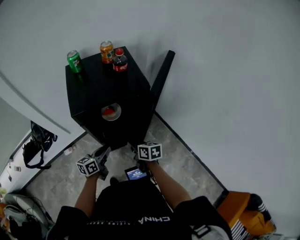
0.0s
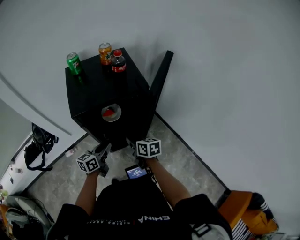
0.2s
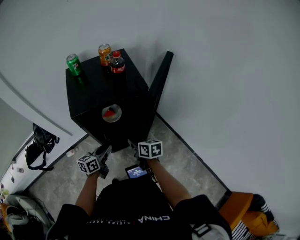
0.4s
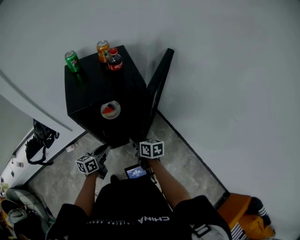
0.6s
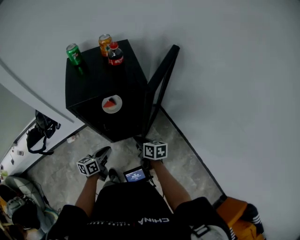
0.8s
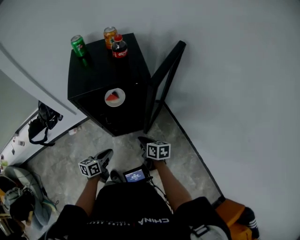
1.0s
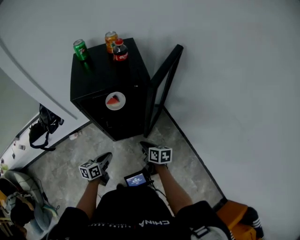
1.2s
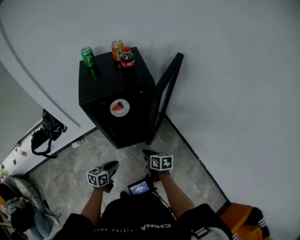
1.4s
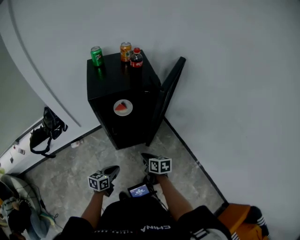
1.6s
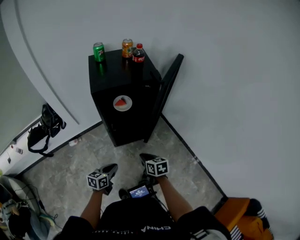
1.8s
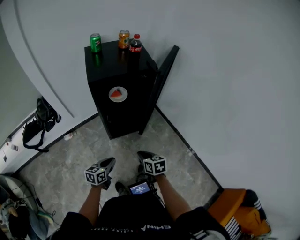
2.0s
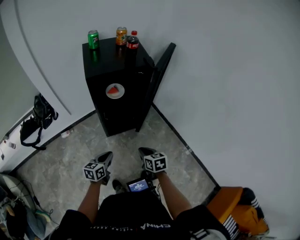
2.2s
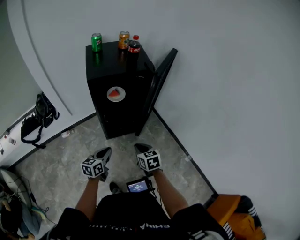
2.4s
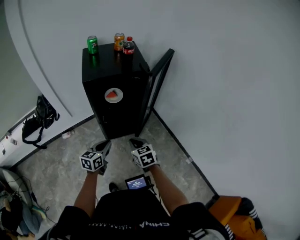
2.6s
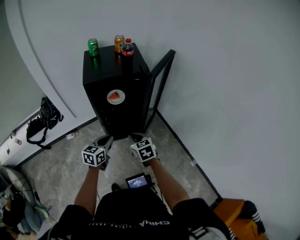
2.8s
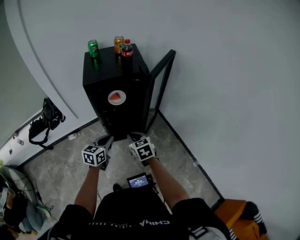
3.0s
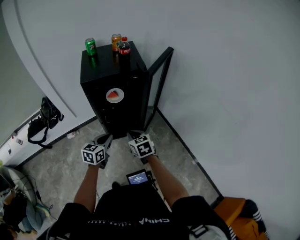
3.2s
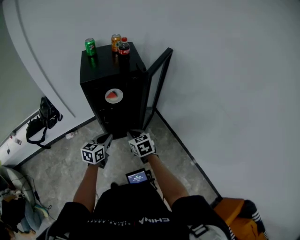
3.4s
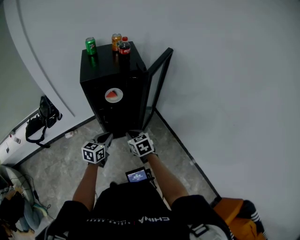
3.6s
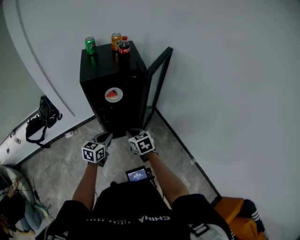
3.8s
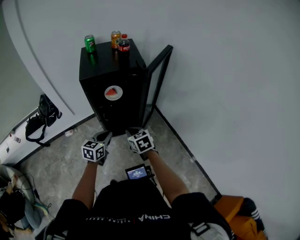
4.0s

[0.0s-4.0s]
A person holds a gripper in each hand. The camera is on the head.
0.0s to 1.4s: The left gripper changes place by roughly 15 cm.
1.4s to 2.6s: The left gripper travels upward by roughly 10 cm.

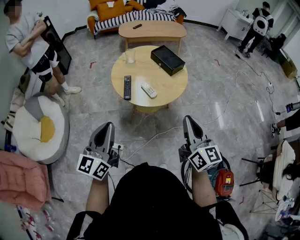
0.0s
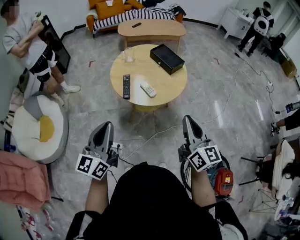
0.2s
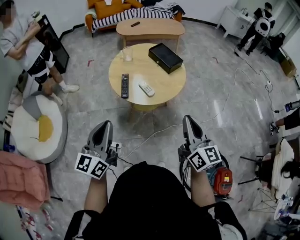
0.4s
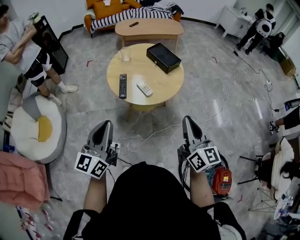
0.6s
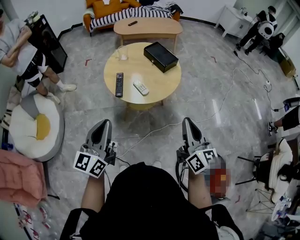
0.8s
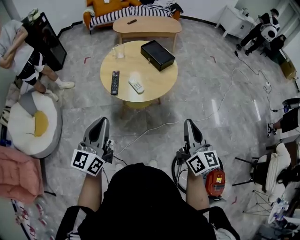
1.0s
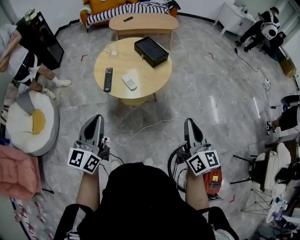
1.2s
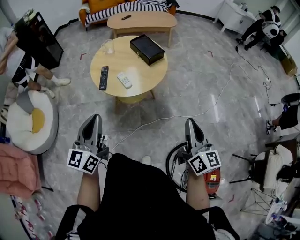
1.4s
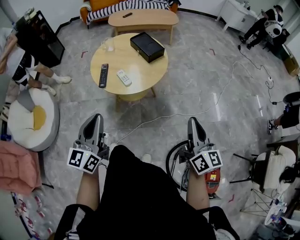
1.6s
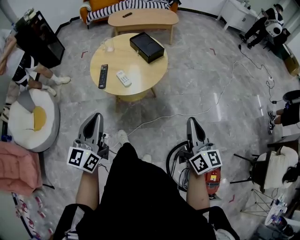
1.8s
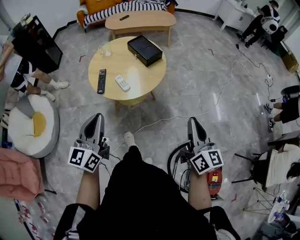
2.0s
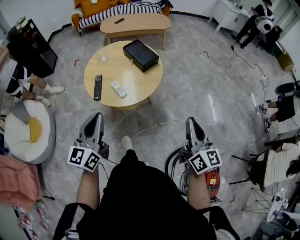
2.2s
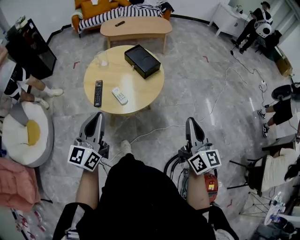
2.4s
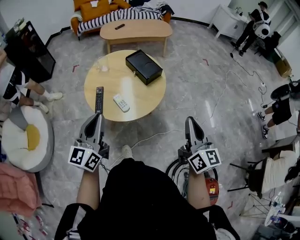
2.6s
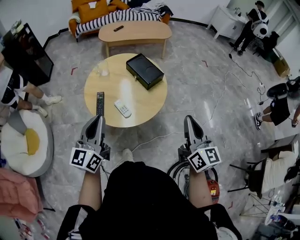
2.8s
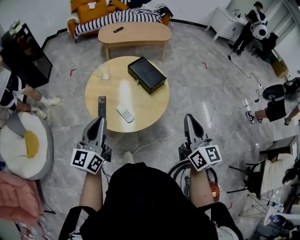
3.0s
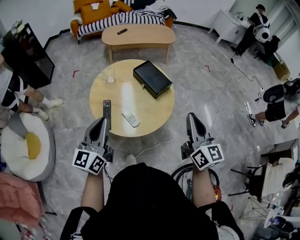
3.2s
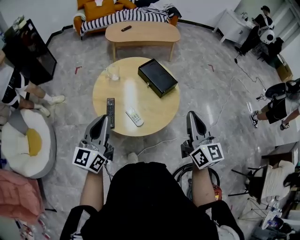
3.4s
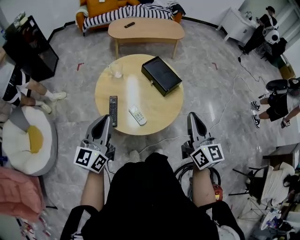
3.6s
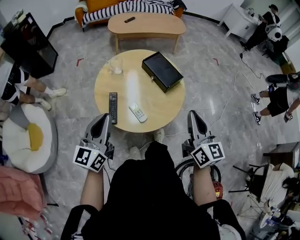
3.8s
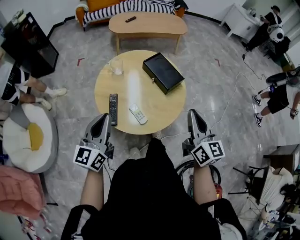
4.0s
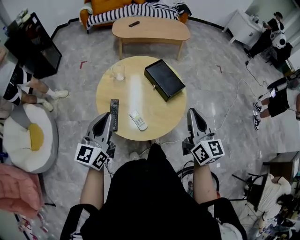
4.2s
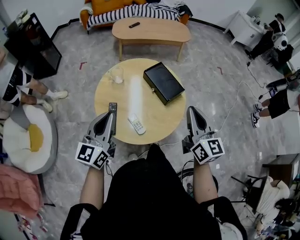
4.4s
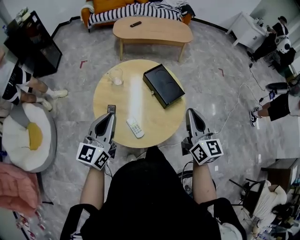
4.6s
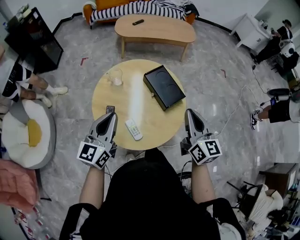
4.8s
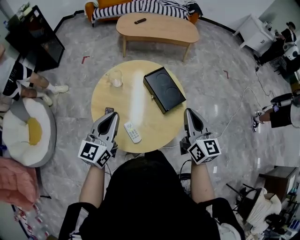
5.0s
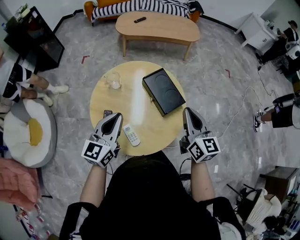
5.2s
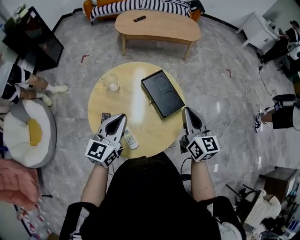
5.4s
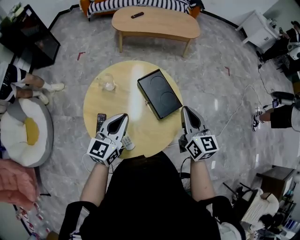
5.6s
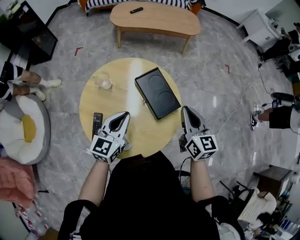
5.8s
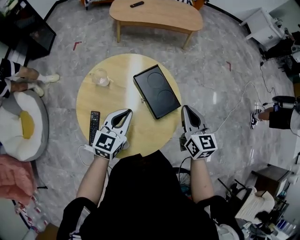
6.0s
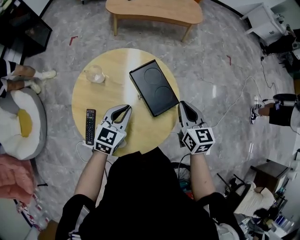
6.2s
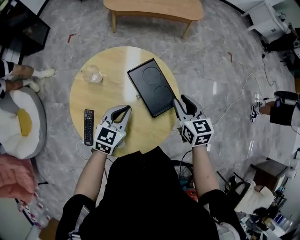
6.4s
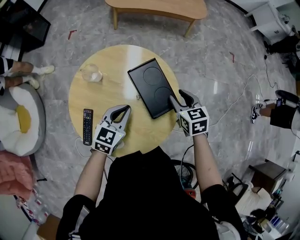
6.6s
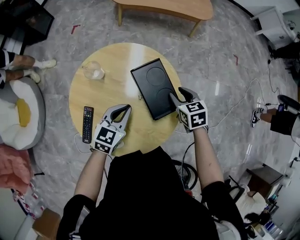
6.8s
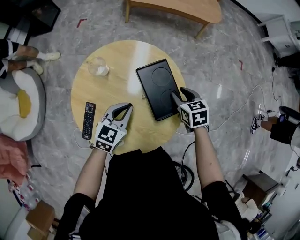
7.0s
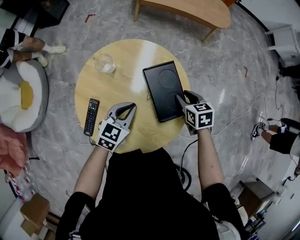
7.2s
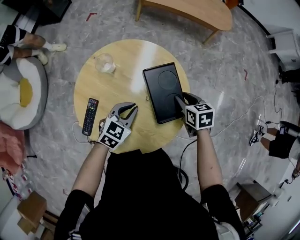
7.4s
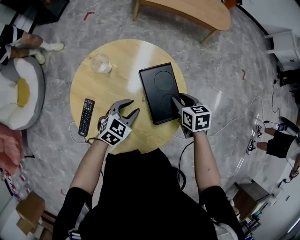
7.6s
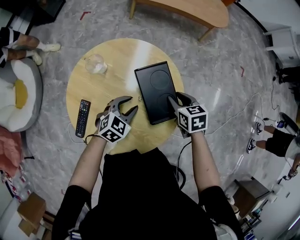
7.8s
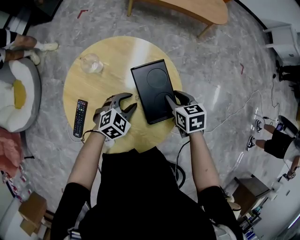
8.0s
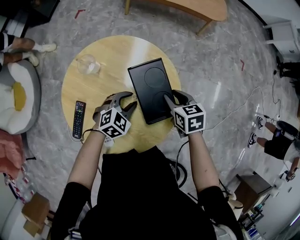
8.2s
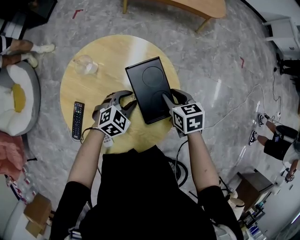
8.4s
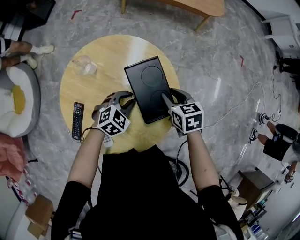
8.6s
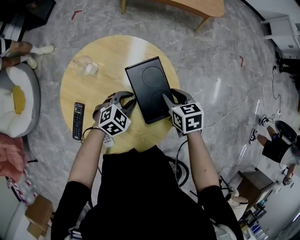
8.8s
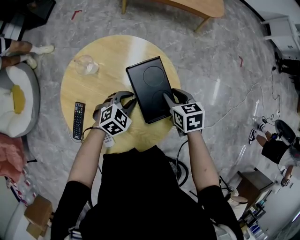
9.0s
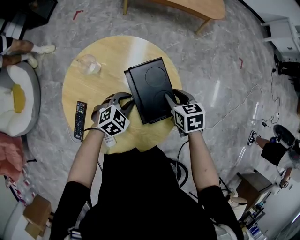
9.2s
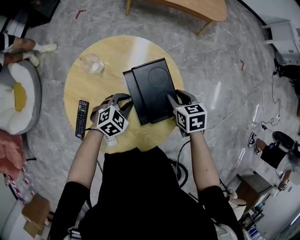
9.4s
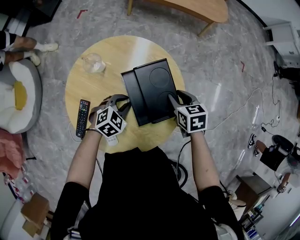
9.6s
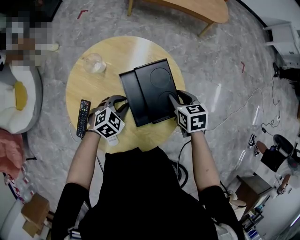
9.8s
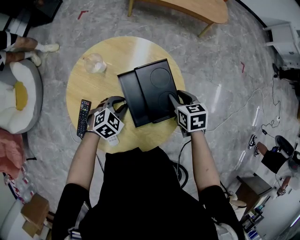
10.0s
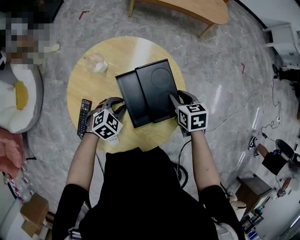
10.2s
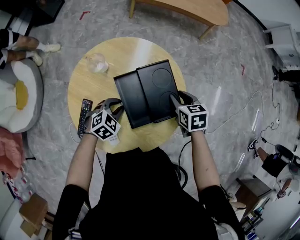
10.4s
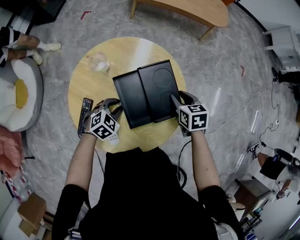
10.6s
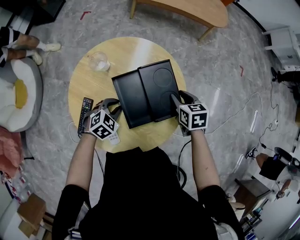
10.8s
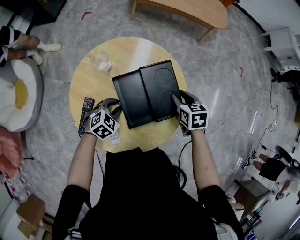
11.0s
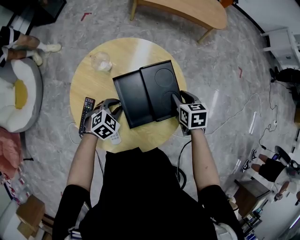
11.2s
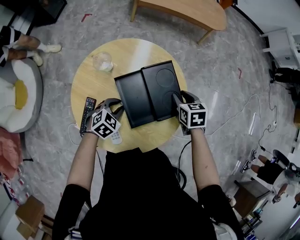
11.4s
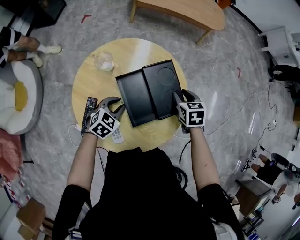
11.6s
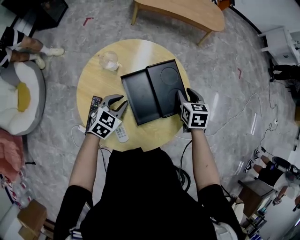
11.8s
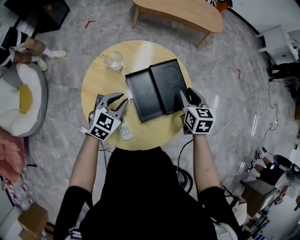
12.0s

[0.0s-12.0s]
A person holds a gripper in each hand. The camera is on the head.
0.0s to 1.6s: The grippers both shift to the right by approximately 15 cm.
1.6s to 3.0s: The left gripper shifts about 20 cm forward. Meanwhile the right gripper goes approximately 25 cm forward and to the left.
3.0s to 4.4s: The left gripper travels forward by about 10 cm; the right gripper shifts about 15 cm forward and to the left.
4.4s to 6.0s: The right gripper travels forward and downward by roughly 20 cm; the left gripper goes approximately 25 cm forward, to the right and downward, and turns by approximately 20 degrees.
6.0s to 7.6s: The left gripper moves downward, roughly 15 cm, swivels approximately 20 degrees, and opens up. Meanwhile the right gripper shifts about 20 cm downward and forward, angles its fingers downward, by about 30 degrees, and opens its fingers.
7.6s to 9.0s: The left gripper ends up approximately 5 cm from where it was.
9.0s to 10.4s: The left gripper moves to the left and backward, about 10 cm.
10.4s to 12.0s: Both grippers move upward, about 10 cm. The left gripper turns by roughly 20 degrees, while the right gripper changes its angle by roughly 20 degrees.

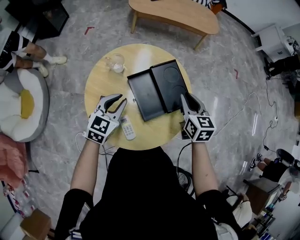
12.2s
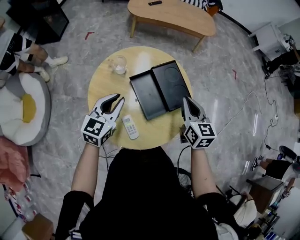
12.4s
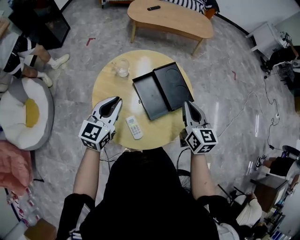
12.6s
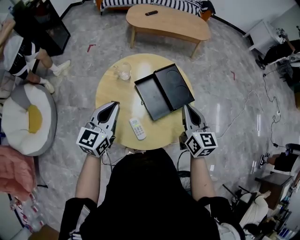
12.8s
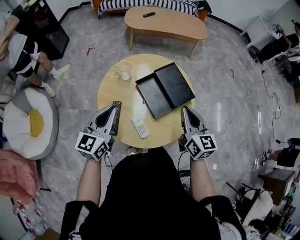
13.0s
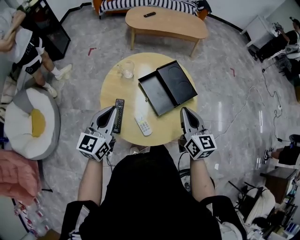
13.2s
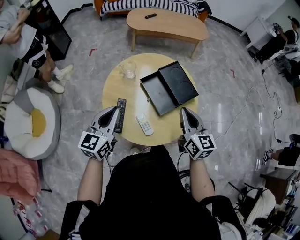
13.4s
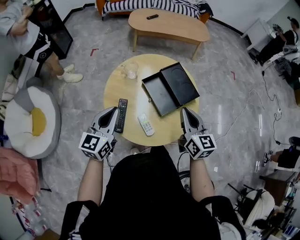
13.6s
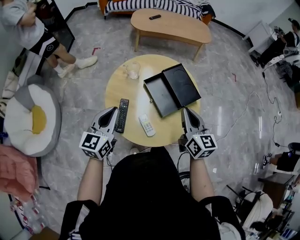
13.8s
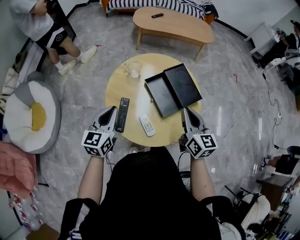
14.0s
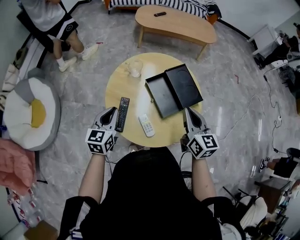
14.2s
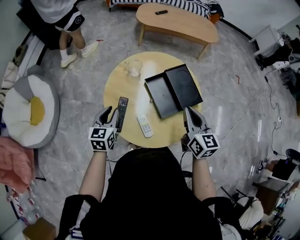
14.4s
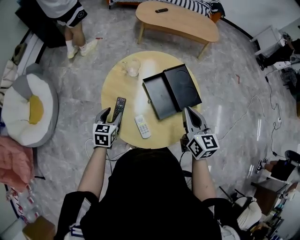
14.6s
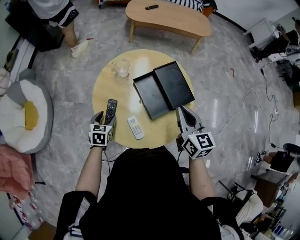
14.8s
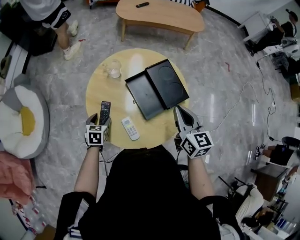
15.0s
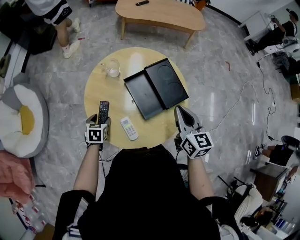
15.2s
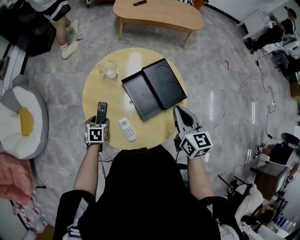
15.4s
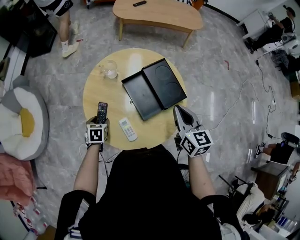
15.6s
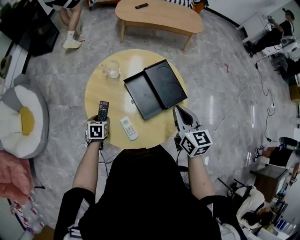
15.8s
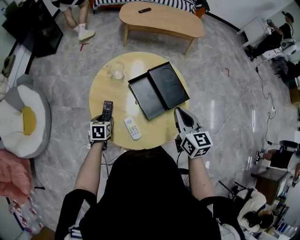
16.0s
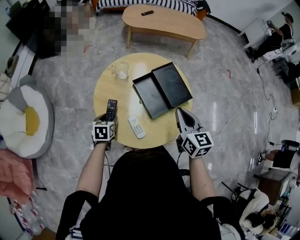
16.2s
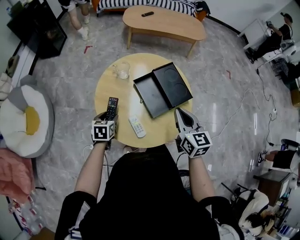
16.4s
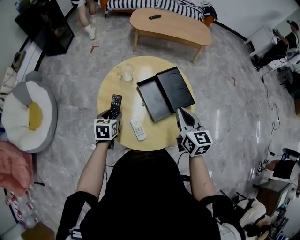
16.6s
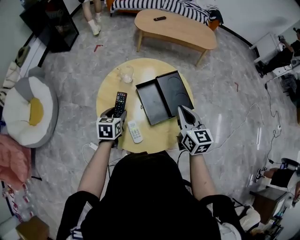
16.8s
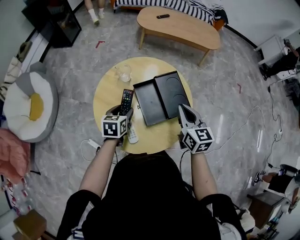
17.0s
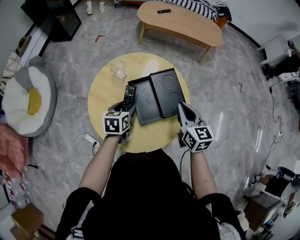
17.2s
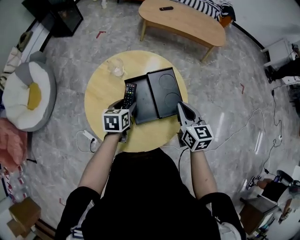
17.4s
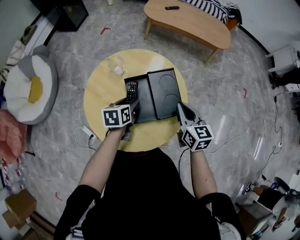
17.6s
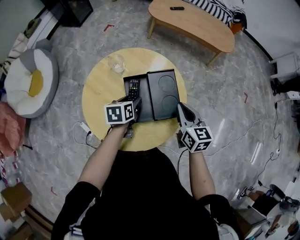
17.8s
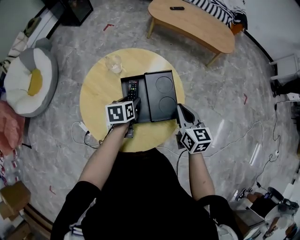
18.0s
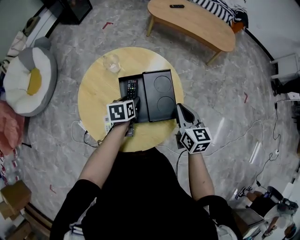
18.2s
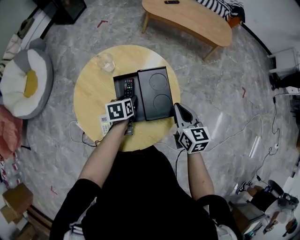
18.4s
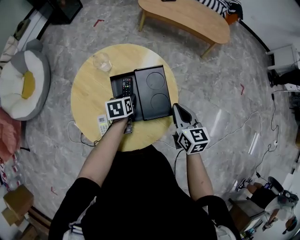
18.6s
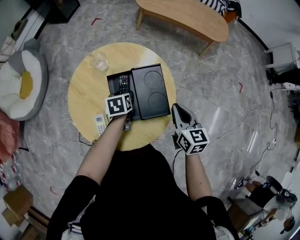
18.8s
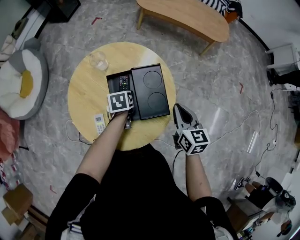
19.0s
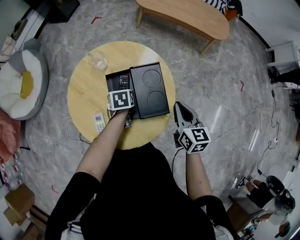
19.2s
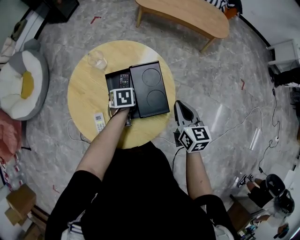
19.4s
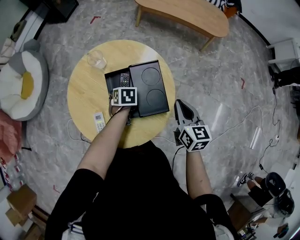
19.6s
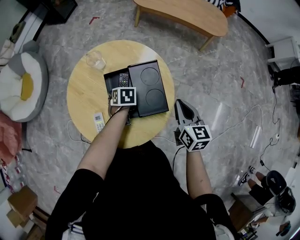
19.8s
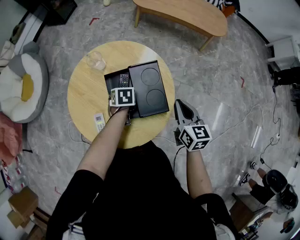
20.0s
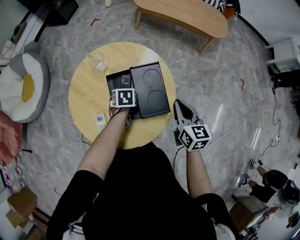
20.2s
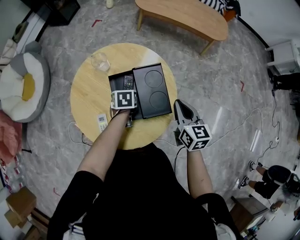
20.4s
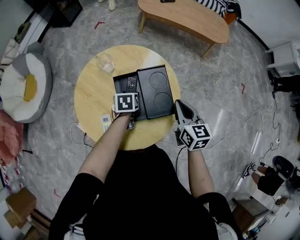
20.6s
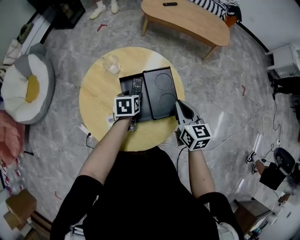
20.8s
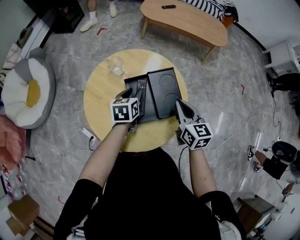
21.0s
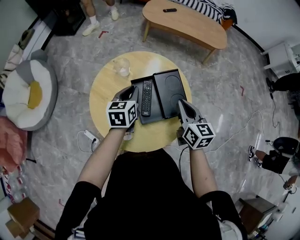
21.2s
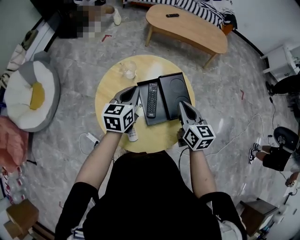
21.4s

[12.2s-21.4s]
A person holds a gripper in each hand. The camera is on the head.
12.2s to 13.8s: The left gripper moves backward, to the left and upward, roughly 15 cm, and swivels approximately 20 degrees, while the right gripper heads backward, upward and to the left, covering roughly 15 cm, and swivels some 20 degrees.
13.8s to 15.2s: The right gripper heads to the right, covering some 5 cm. The left gripper shifts approximately 25 cm downward, tips its fingers downward by about 40 degrees, and opens up.
15.2s to 16.8s: The left gripper heads upward and to the right, covering about 15 cm.
16.8s to 18.4s: The right gripper shifts some 15 cm to the right, downward and forward. Meanwhile the left gripper moves to the right, roughly 15 cm, and turns by some 30 degrees.
18.4s to 19.8s: The left gripper travels downward by roughly 5 cm, and swivels approximately 30 degrees.
19.8s to 21.4s: The right gripper heads to the left and upward, covering roughly 15 cm. The left gripper heads upward and to the left, covering roughly 25 cm, angles its fingers upward, by approximately 50 degrees, and closes its fingers.
